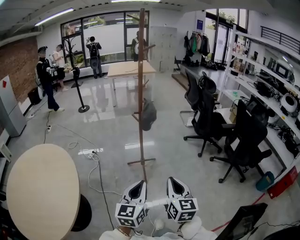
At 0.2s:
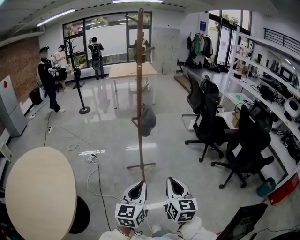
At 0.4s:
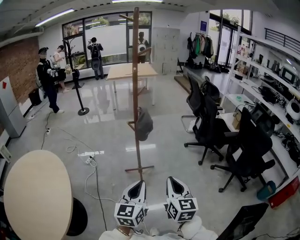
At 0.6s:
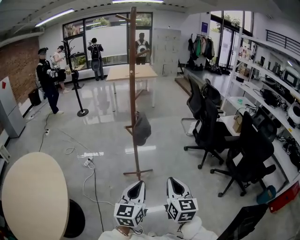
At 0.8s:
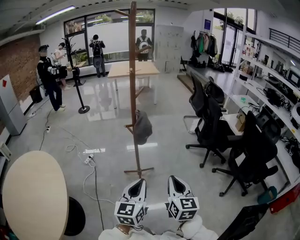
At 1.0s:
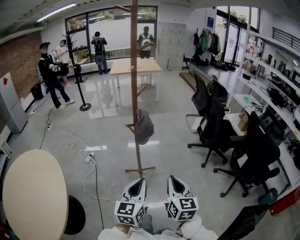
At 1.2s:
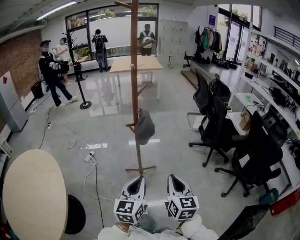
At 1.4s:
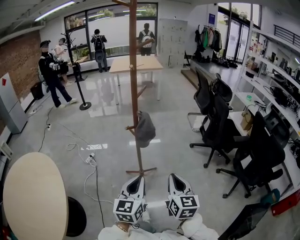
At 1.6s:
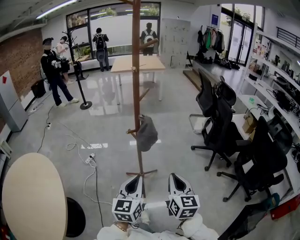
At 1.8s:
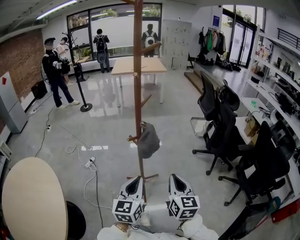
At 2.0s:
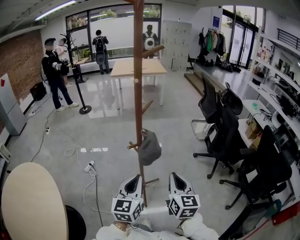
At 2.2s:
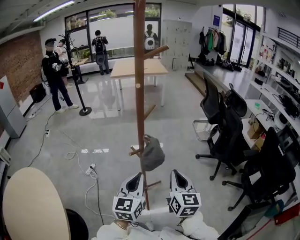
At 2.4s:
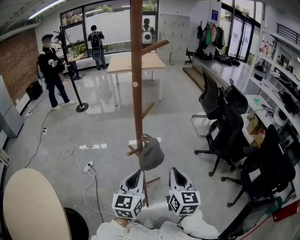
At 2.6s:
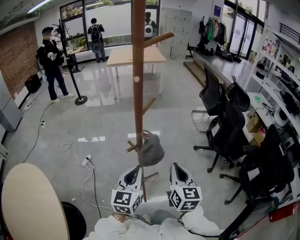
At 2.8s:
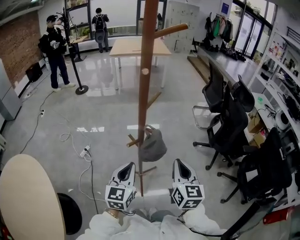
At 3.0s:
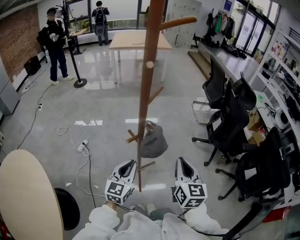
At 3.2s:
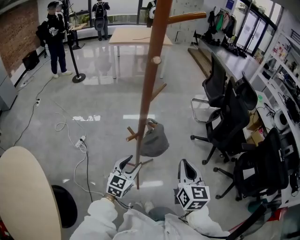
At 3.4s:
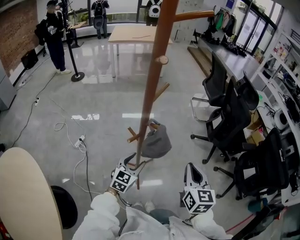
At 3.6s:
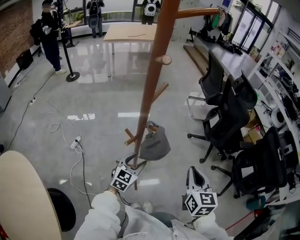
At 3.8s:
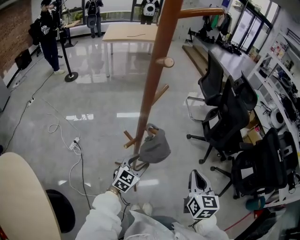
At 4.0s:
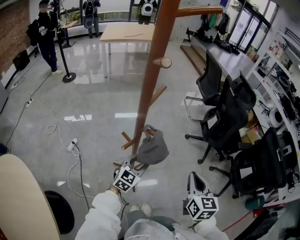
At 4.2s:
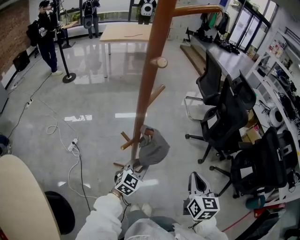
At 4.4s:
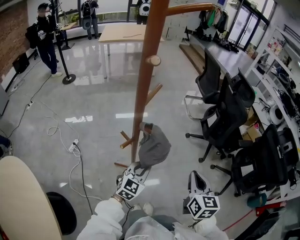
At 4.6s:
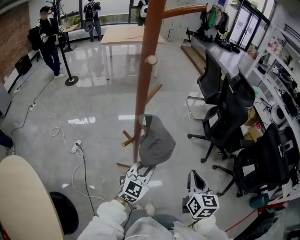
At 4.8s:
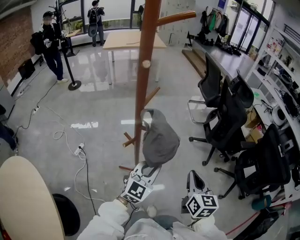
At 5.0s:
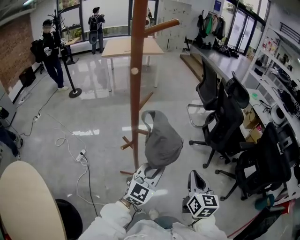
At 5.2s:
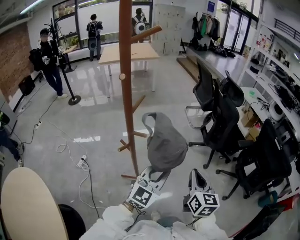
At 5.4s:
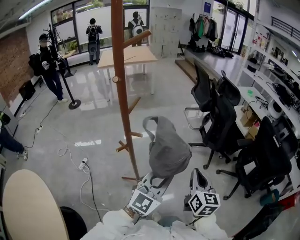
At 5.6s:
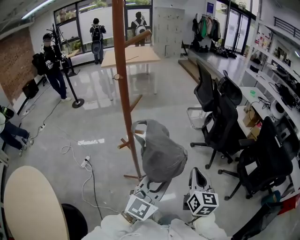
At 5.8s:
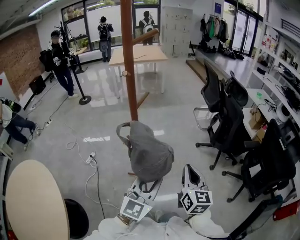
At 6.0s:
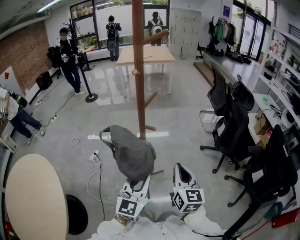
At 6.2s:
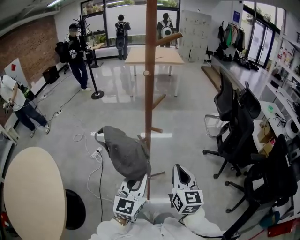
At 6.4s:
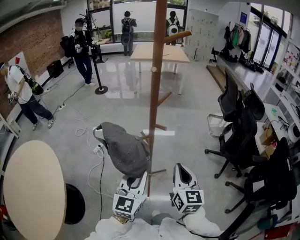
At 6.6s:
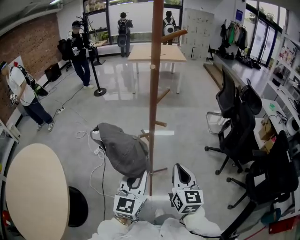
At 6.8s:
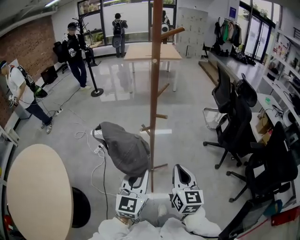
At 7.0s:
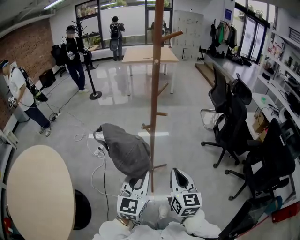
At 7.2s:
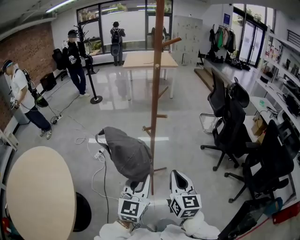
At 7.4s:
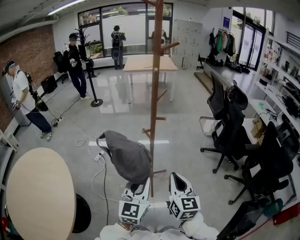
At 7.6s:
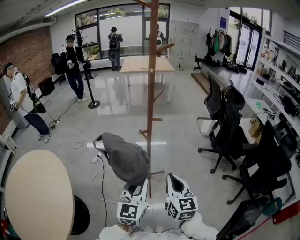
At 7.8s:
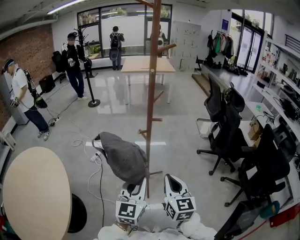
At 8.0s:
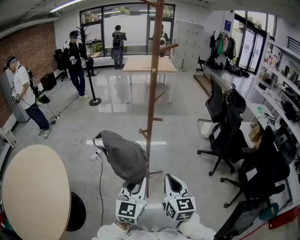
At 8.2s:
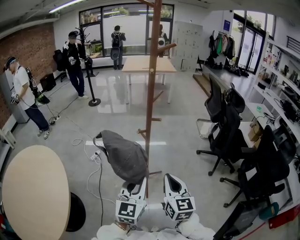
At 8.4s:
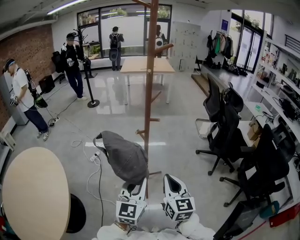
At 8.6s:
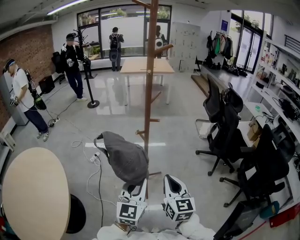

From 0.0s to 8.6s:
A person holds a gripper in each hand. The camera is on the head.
From 0.0s to 1.4s: The grippers both shift forward by some 20 cm.
From 1.4s to 2.8s: The right gripper goes about 20 cm forward. Meanwhile the left gripper heads forward and to the left, covering approximately 20 cm.
From 2.8s to 4.4s: The right gripper moves to the right, some 10 cm, while the left gripper heads downward, to the right and forward, covering roughly 15 cm, changes its angle by roughly 30 degrees, and opens, then closes once more.
From 4.4s to 5.8s: The left gripper is displaced upward and backward by some 20 cm, while the right gripper is displaced upward by about 5 cm.
From 5.8s to 7.2s: The left gripper is displaced to the left and backward by some 15 cm, and turns by roughly 20 degrees. The right gripper shifts roughly 15 cm backward and to the left.
From 7.2s to 8.6s: The grippers stay close to where they were, moving slightly.

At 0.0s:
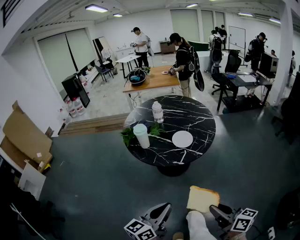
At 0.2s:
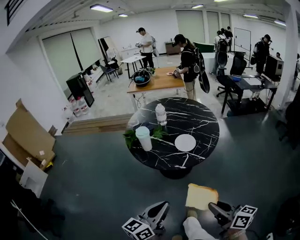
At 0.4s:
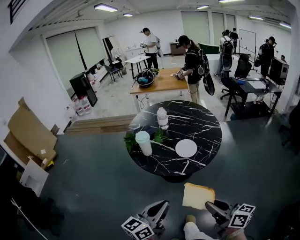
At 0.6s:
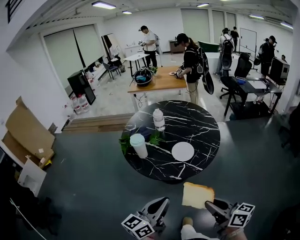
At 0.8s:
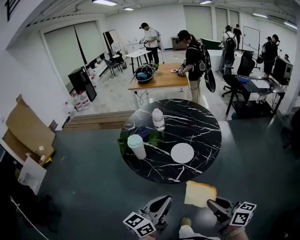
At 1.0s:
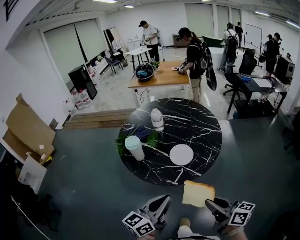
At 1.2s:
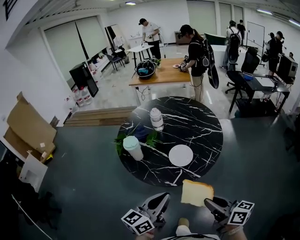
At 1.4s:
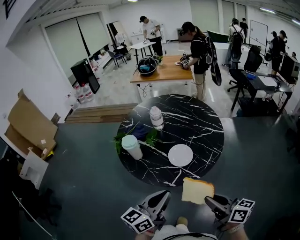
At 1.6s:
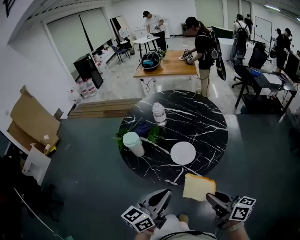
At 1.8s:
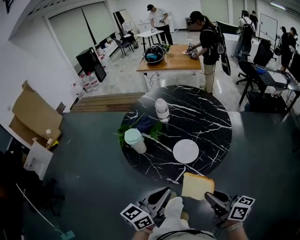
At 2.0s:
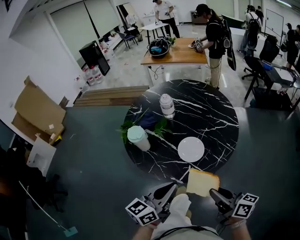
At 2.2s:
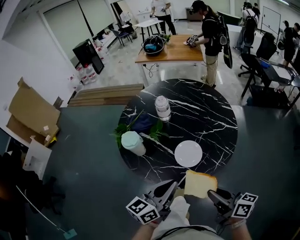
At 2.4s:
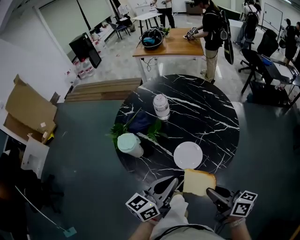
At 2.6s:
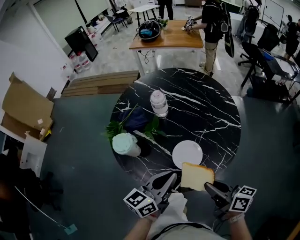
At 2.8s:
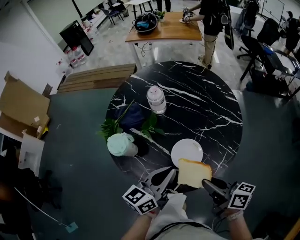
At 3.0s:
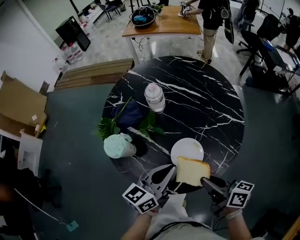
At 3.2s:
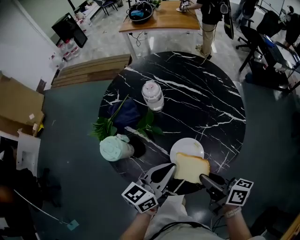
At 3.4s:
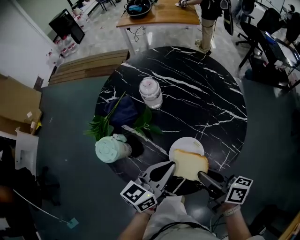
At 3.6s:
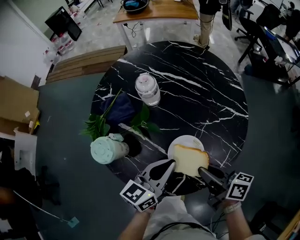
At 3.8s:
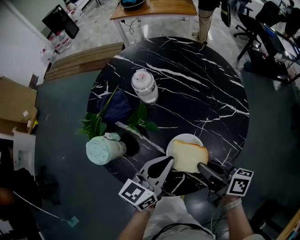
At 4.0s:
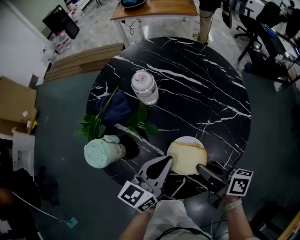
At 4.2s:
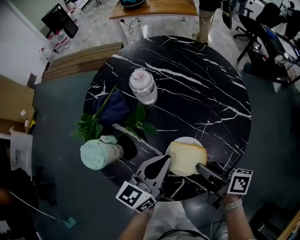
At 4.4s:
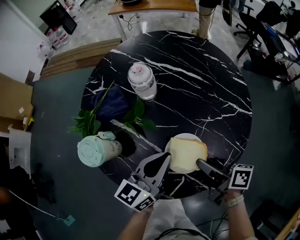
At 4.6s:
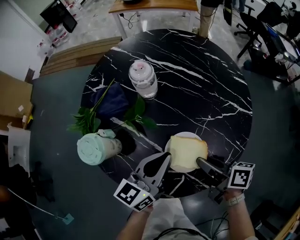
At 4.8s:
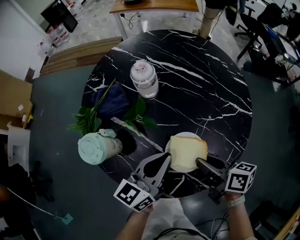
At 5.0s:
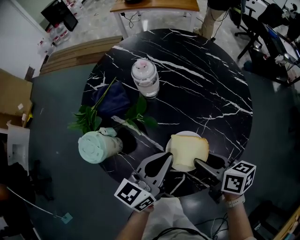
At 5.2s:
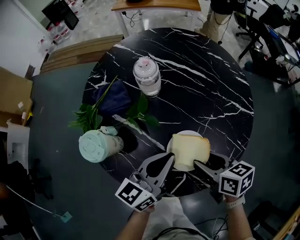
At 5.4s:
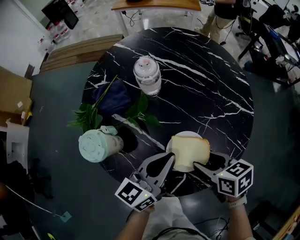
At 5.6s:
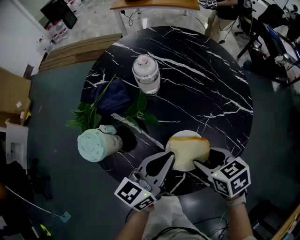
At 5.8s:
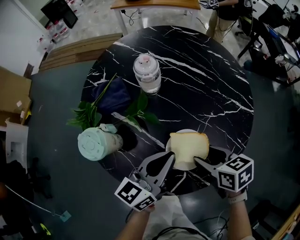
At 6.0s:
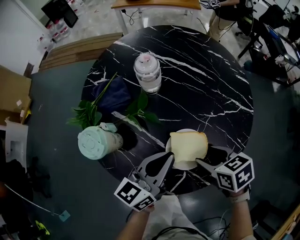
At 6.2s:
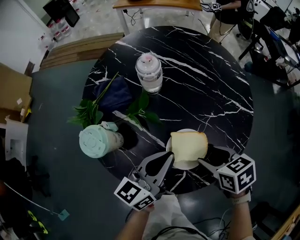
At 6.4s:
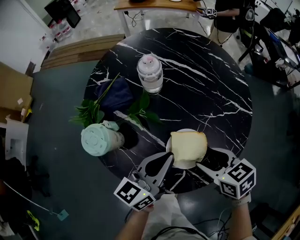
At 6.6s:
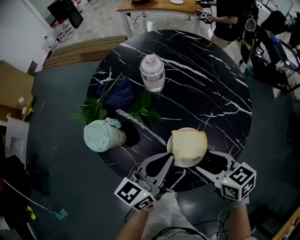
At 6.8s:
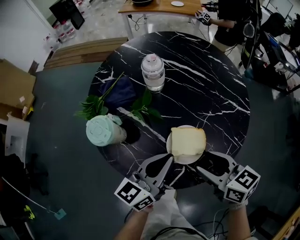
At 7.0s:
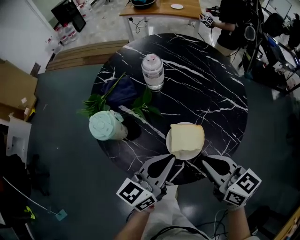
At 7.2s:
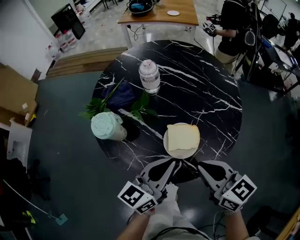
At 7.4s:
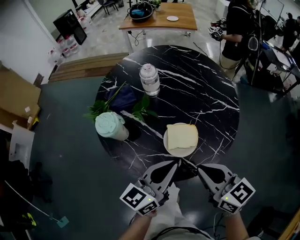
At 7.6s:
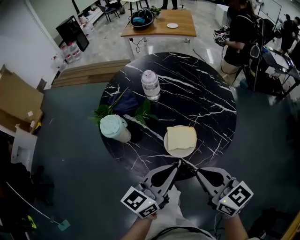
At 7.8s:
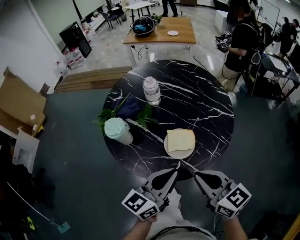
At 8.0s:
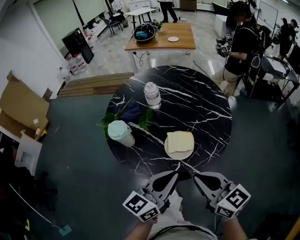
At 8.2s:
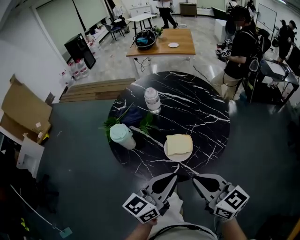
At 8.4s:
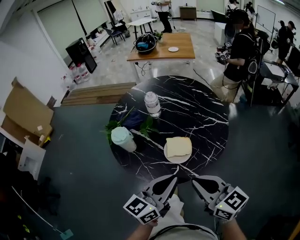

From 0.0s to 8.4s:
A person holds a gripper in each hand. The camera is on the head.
From 0.0s to 1.4s: The left gripper is displaced forward and to the right by roughly 25 cm, while the right gripper moves forward, roughly 25 cm.
From 1.4s to 2.8s: Both grippers travel together forward, some 20 cm.
From 2.8s to 4.2s: The left gripper goes roughly 10 cm forward and downward. Meanwhile the right gripper shifts some 15 cm downward and forward.
From 4.2s to 5.6s: The right gripper angles its fingers downward, by some 40 degrees, and opens its fingers.
From 5.6s to 7.0s: The left gripper heads backward, covering some 5 cm. The right gripper travels upward by approximately 10 cm, points its fingers roughly 30 degrees further upward, and closes up.
From 7.0s to 8.4s: The two grippers go approximately 15 cm backward and upward.

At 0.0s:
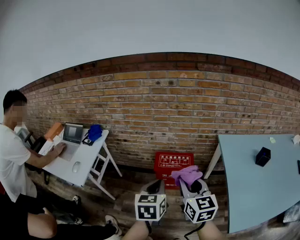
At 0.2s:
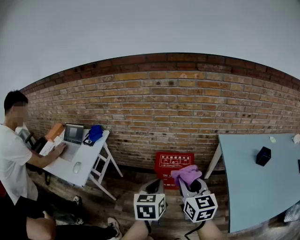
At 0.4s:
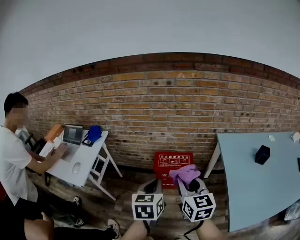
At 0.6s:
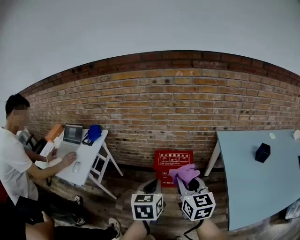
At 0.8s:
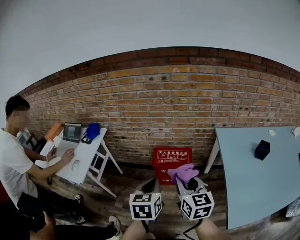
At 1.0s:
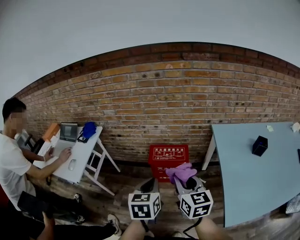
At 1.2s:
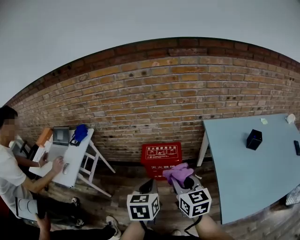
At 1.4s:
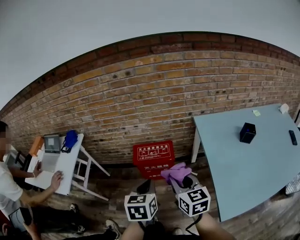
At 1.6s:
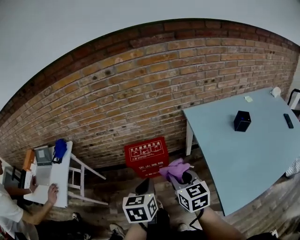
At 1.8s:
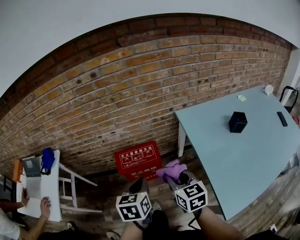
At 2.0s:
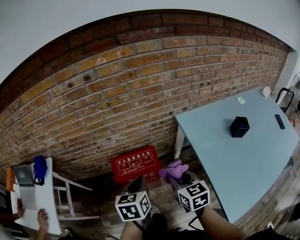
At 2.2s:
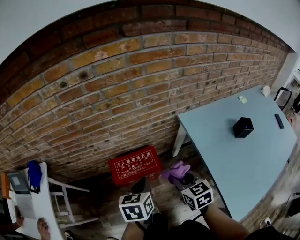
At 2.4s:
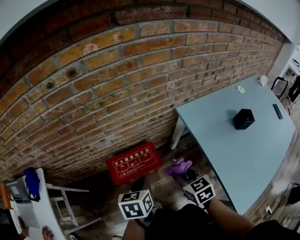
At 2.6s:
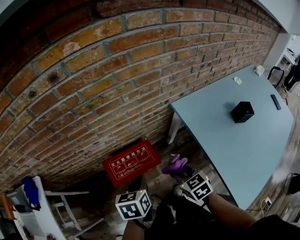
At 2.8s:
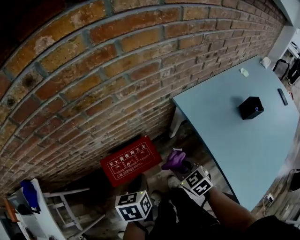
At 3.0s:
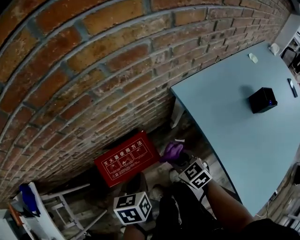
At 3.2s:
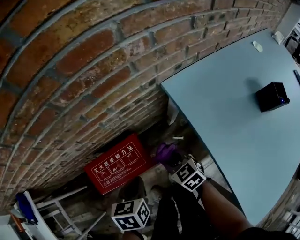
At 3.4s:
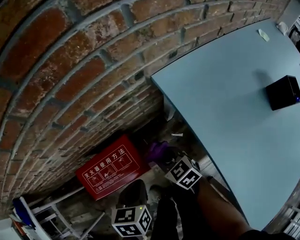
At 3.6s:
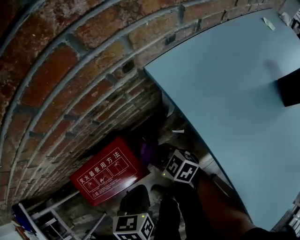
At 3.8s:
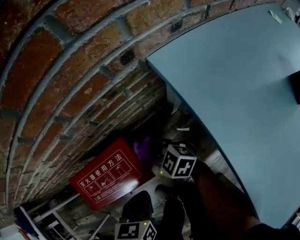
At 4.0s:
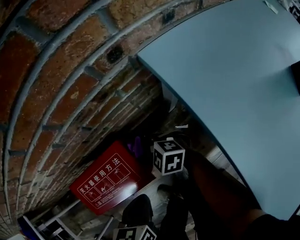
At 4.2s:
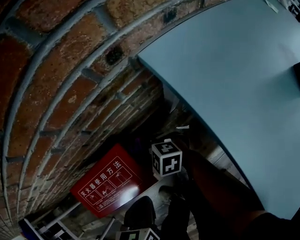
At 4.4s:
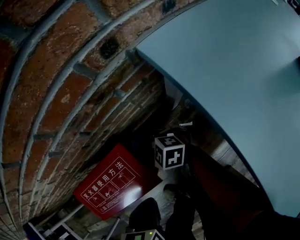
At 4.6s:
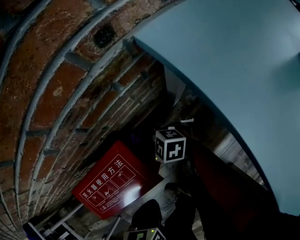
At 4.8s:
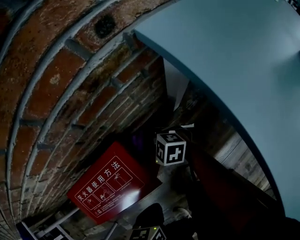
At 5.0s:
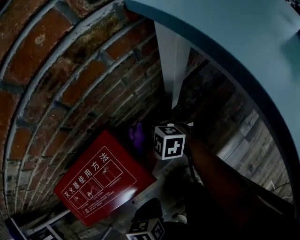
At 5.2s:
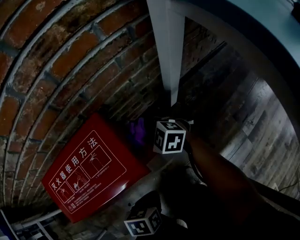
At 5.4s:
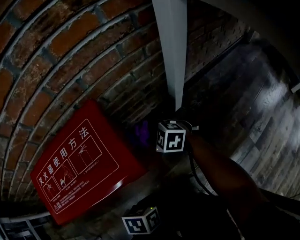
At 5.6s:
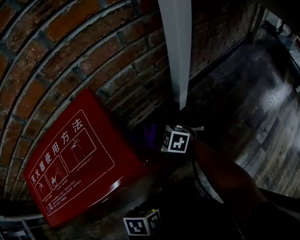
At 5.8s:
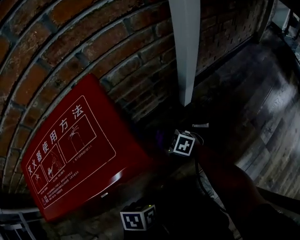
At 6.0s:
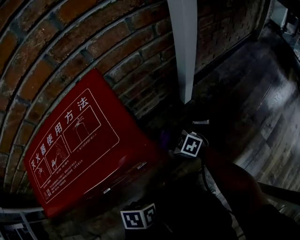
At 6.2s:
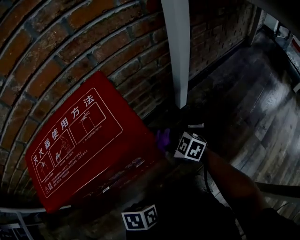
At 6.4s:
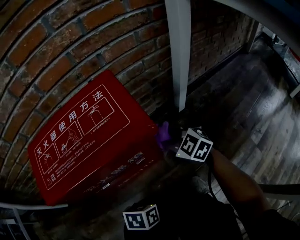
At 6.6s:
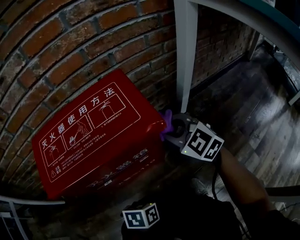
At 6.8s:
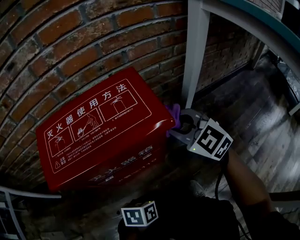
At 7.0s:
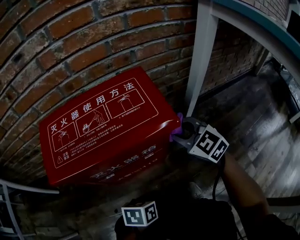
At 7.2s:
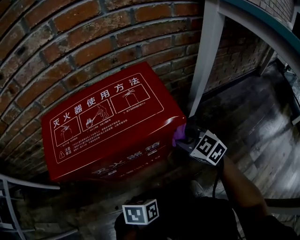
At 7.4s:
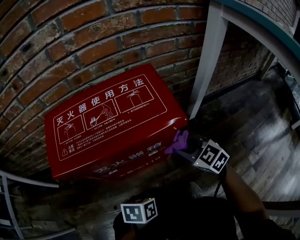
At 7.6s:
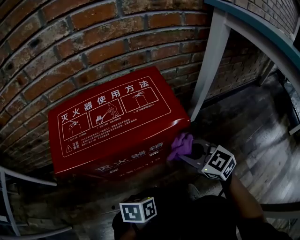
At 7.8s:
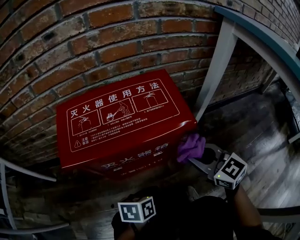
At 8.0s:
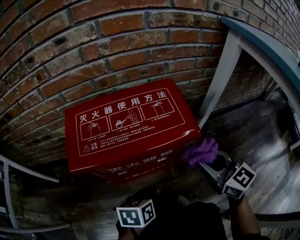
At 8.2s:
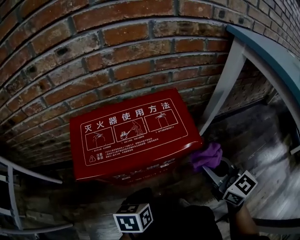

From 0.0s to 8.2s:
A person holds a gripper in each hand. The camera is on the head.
From 0.0s to 1.6s: The grippers both shift to the right and downward by some 15 cm.
From 1.6s to 3.2s: The right gripper moves downward and forward, roughly 40 cm, and swivels about 20 degrees. The left gripper goes some 40 cm forward and downward, and changes its angle by about 30 degrees.
From 3.2s to 5.0s: The right gripper goes roughly 25 cm downward and forward, and turns by roughly 30 degrees, while the left gripper moves downward, about 30 cm.
From 5.0s to 6.6s: The right gripper heads backward, covering roughly 5 cm, moves about 25 cm downward and comes back, and swivels approximately 30 degrees, while the left gripper goes approximately 15 cm downward.
From 6.6s to 8.2s: The left gripper shifts some 15 cm upward and to the left, and rotates roughly 20 degrees. Meanwhile the right gripper goes up and down, some 15 cm each way, reversing 2 times, and changes its angle by approximately 30 degrees.
